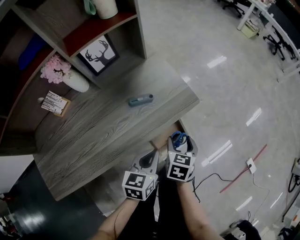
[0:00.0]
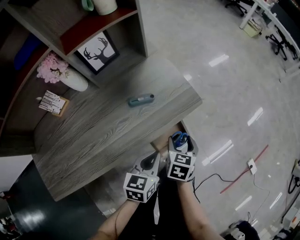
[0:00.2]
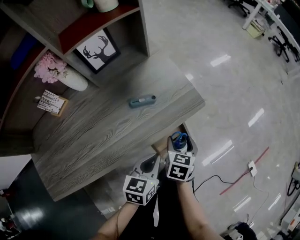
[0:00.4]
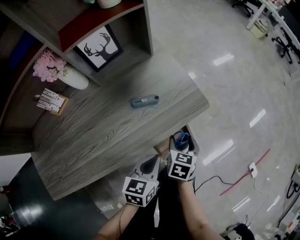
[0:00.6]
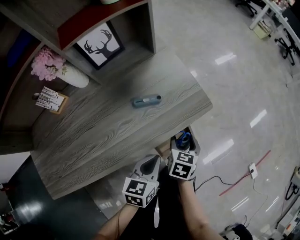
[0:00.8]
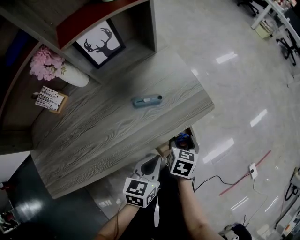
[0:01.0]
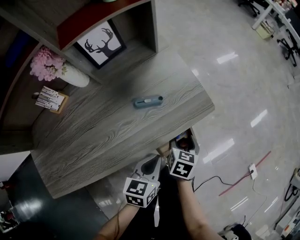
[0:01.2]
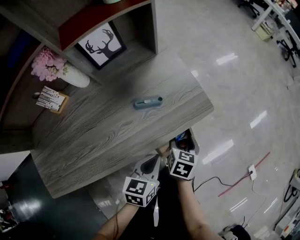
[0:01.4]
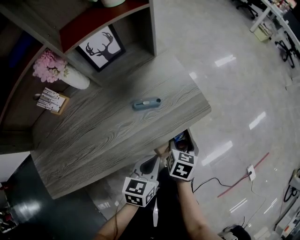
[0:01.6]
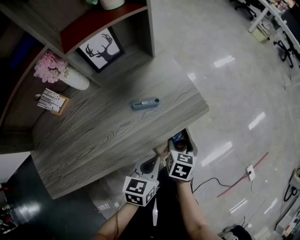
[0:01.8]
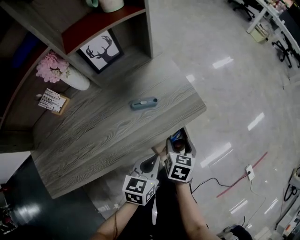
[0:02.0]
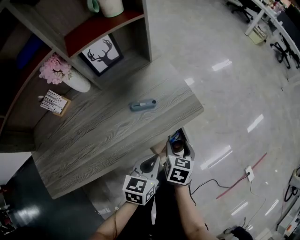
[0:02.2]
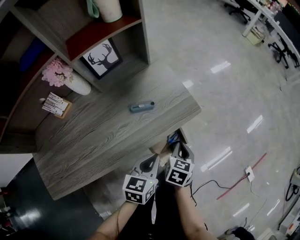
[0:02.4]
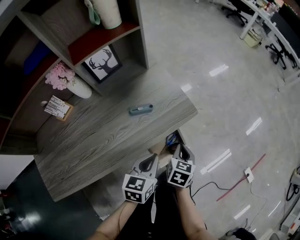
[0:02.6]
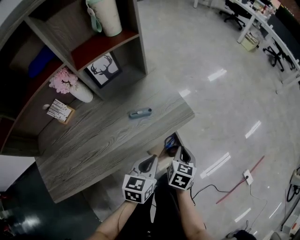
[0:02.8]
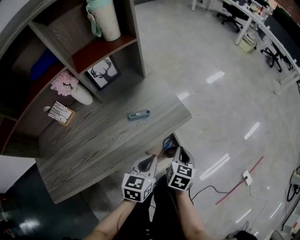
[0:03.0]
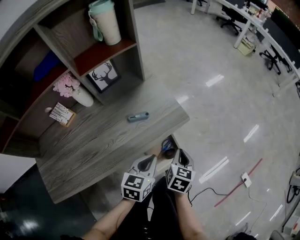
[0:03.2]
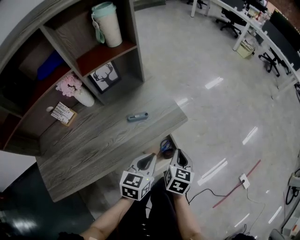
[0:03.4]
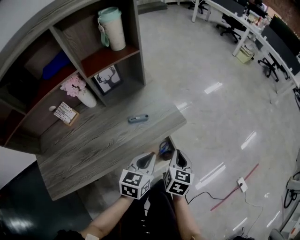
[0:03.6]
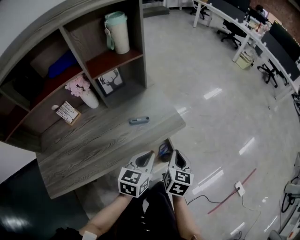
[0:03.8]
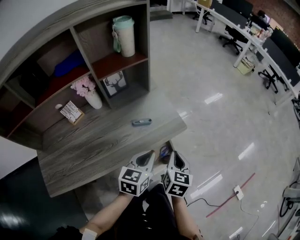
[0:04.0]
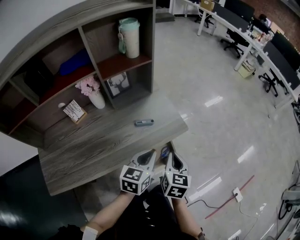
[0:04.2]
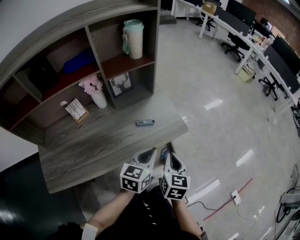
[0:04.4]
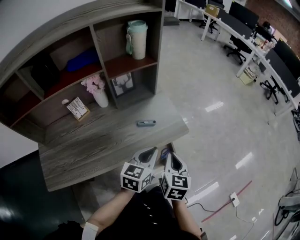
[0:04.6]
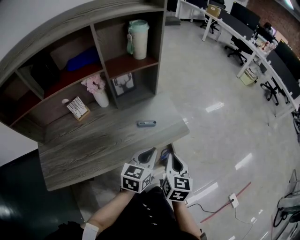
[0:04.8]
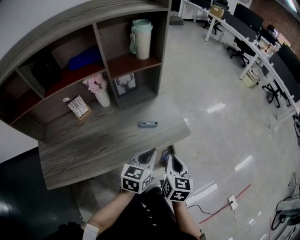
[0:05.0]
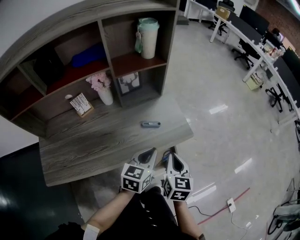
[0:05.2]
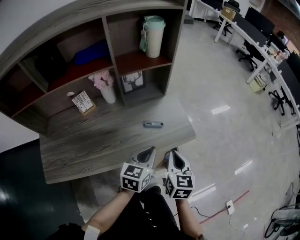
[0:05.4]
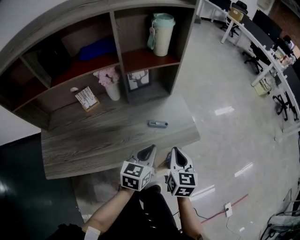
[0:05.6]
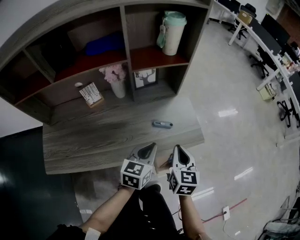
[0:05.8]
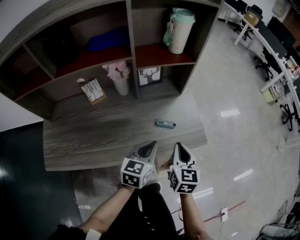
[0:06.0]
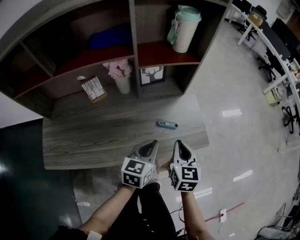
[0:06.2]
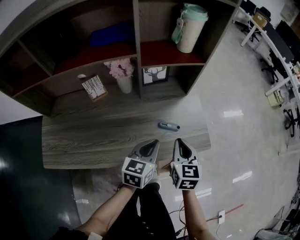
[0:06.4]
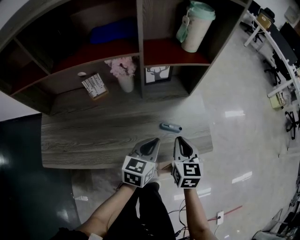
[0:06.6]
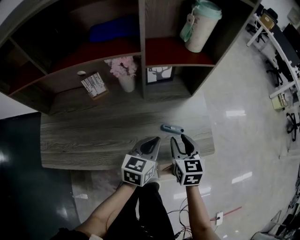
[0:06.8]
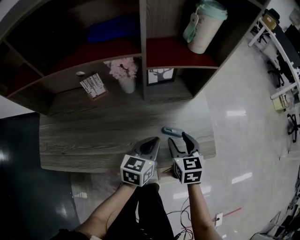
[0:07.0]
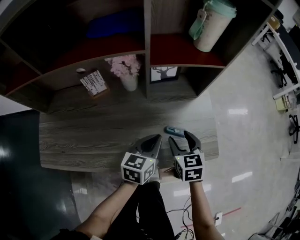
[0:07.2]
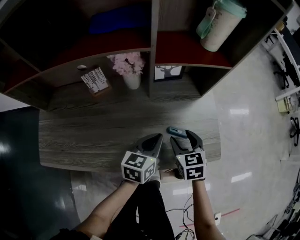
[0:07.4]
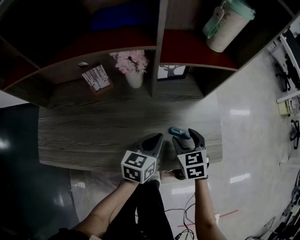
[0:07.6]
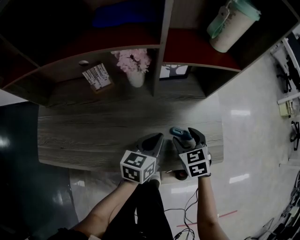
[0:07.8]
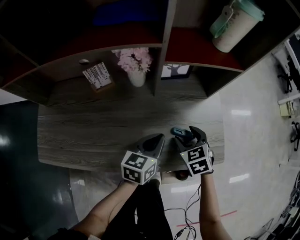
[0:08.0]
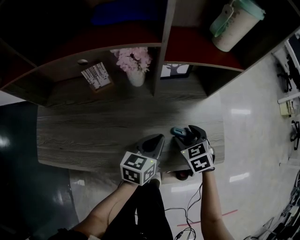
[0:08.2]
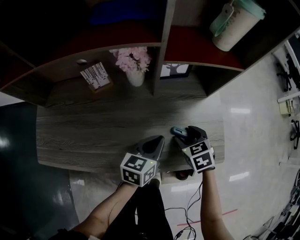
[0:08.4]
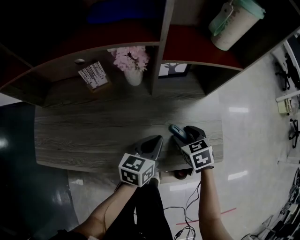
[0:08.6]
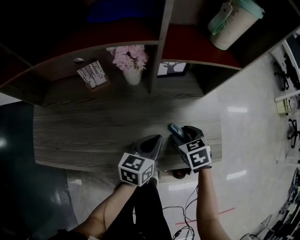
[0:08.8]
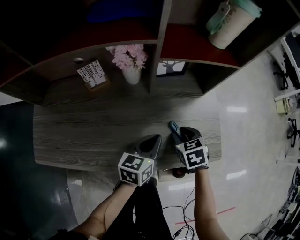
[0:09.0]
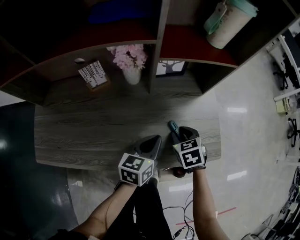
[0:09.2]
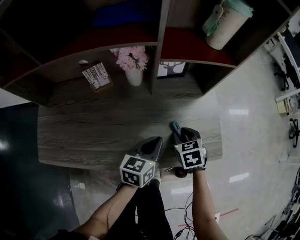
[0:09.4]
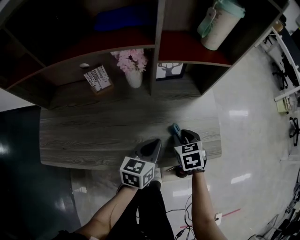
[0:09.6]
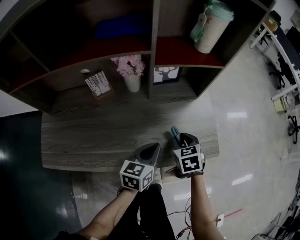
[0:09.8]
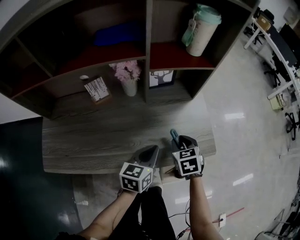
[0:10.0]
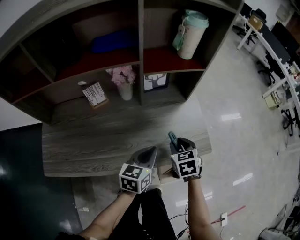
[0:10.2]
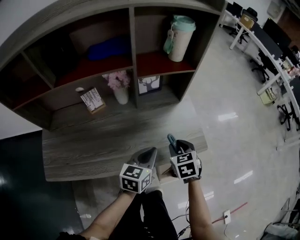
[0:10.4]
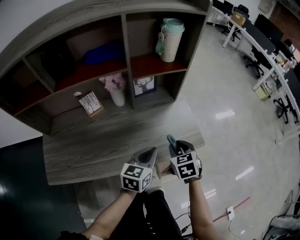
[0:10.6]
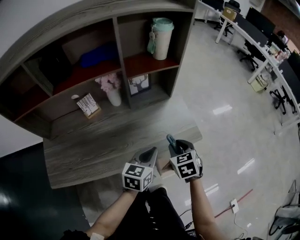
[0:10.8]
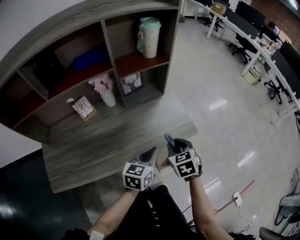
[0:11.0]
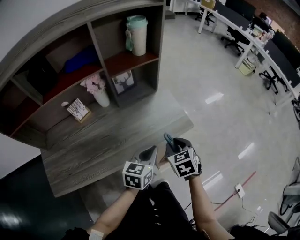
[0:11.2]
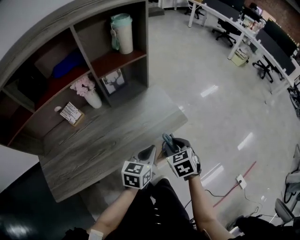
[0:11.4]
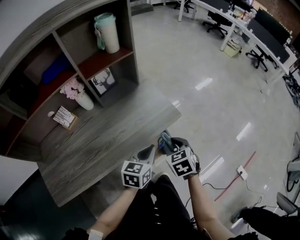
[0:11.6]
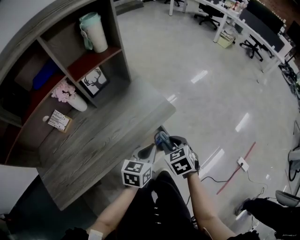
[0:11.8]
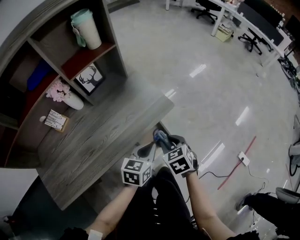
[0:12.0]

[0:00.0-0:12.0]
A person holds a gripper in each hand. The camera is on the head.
0.0 to 1.6 s: The right gripper heads downward, covering some 5 cm.
1.6 to 3.0 s: The right gripper moves upward and to the right, about 10 cm, and closes its fingers; the left gripper goes about 5 cm upward.
3.0 to 4.4 s: Both grippers move upward, about 10 cm.
4.4 to 6.0 s: The right gripper travels forward and to the left by approximately 10 cm, while the left gripper shifts some 10 cm to the left.
6.0 to 7.6 s: The left gripper moves forward and downward, roughly 10 cm; the right gripper travels downward, forward and to the left by some 15 cm, swivels about 30 degrees, and opens its fingers.
7.6 to 9.0 s: The right gripper closes.
9.0 to 10.4 s: The two grippers go roughly 10 cm upward and backward.
10.4 to 12.0 s: The right gripper moves backward and to the right, some 15 cm. Meanwhile the left gripper goes some 15 cm to the right and backward, and swivels roughly 30 degrees.

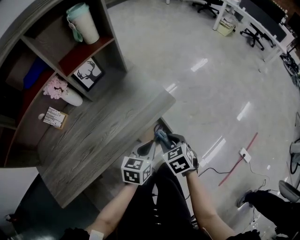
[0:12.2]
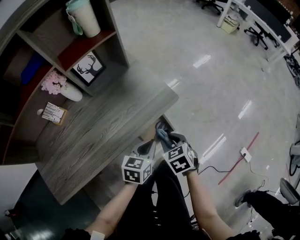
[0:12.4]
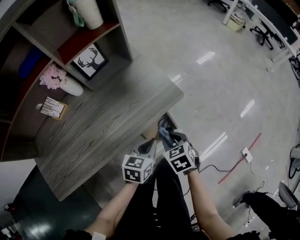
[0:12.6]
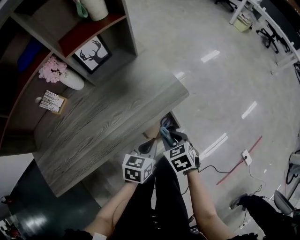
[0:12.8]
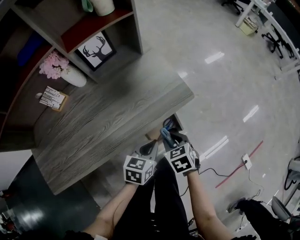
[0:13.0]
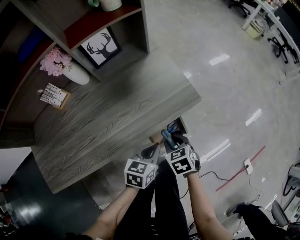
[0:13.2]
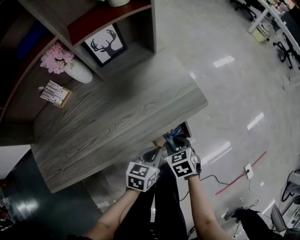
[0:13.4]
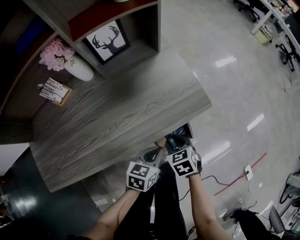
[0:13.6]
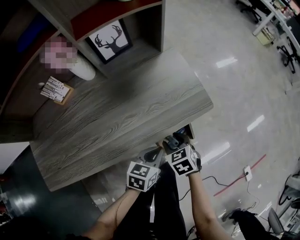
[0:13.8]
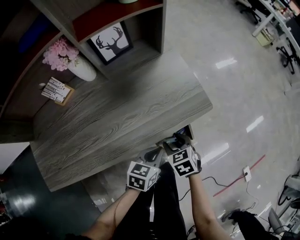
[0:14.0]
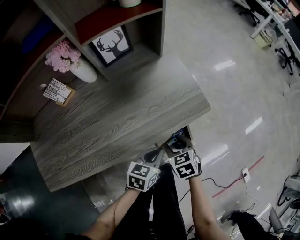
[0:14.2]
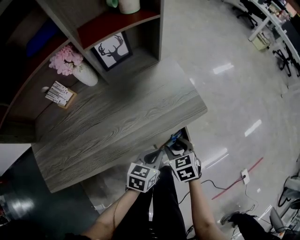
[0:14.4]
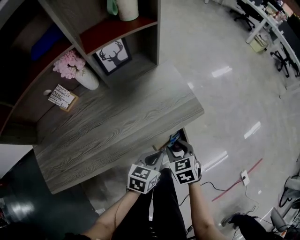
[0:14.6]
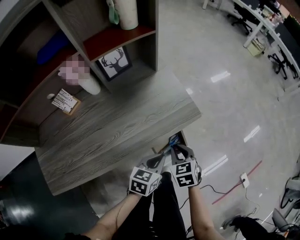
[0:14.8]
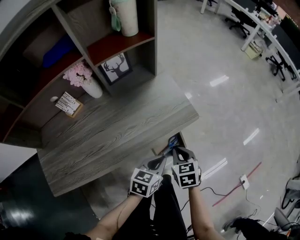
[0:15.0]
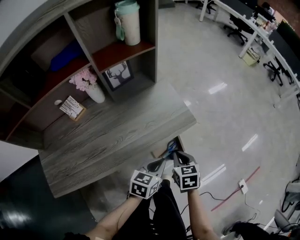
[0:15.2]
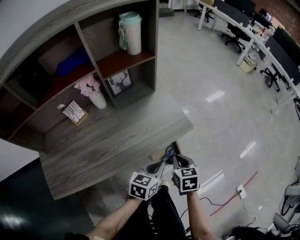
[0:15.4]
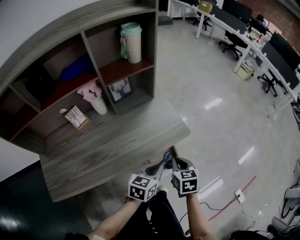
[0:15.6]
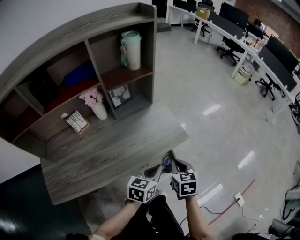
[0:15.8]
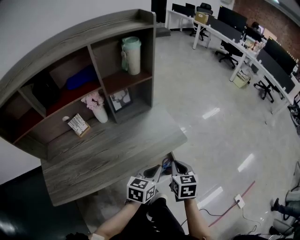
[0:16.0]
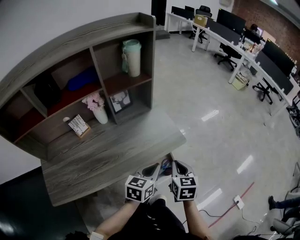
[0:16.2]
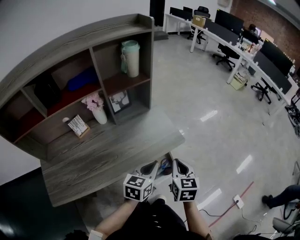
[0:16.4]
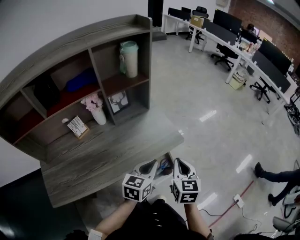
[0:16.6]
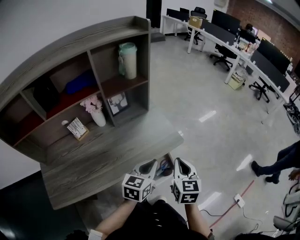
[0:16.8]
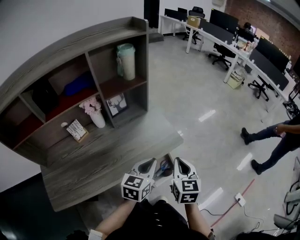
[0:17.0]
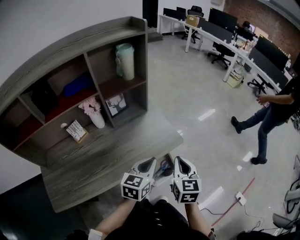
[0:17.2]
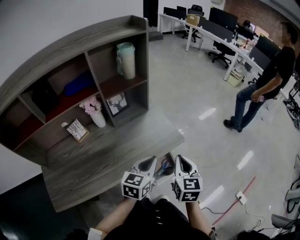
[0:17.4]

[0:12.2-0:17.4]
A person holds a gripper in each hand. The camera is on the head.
12.2 to 14.0 s: The two grippers go roughly 15 cm downward and to the left.
14.0 to 15.6 s: Both grippers move upward, about 15 cm. The right gripper swivels some 30 degrees, and closes its fingers.
15.6 to 17.4 s: Both grippers move upward, approximately 10 cm. The right gripper turns by some 20 degrees.

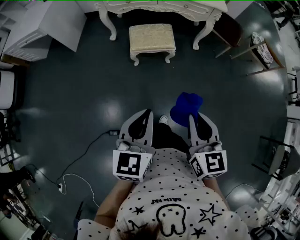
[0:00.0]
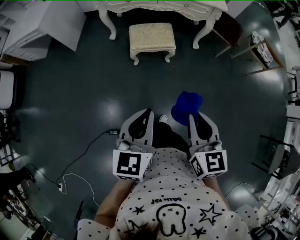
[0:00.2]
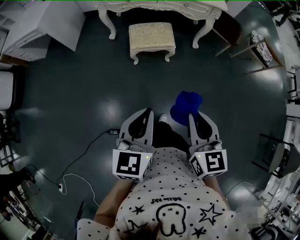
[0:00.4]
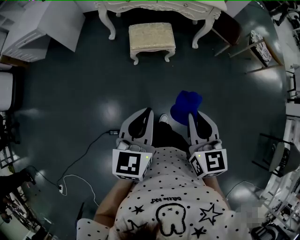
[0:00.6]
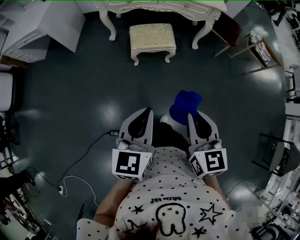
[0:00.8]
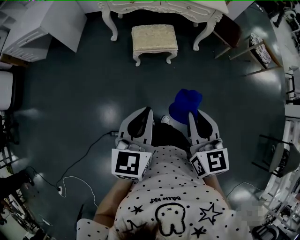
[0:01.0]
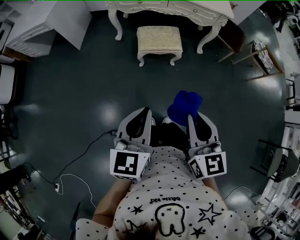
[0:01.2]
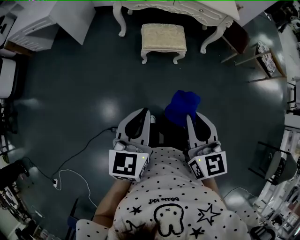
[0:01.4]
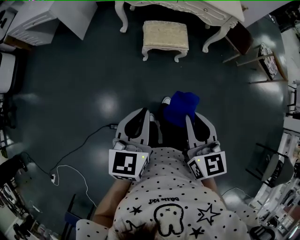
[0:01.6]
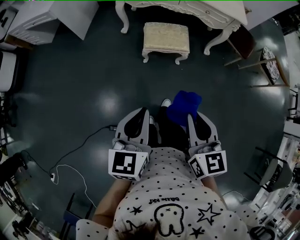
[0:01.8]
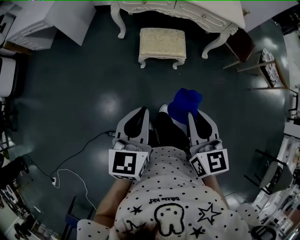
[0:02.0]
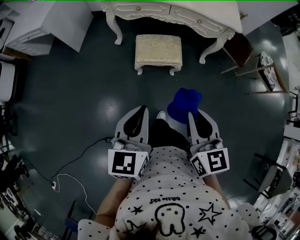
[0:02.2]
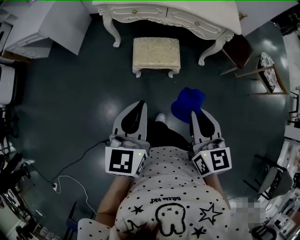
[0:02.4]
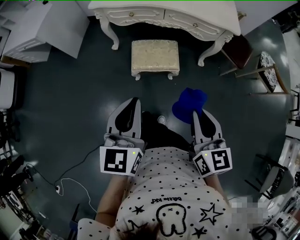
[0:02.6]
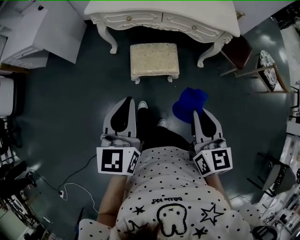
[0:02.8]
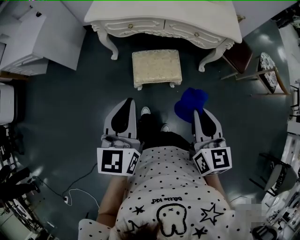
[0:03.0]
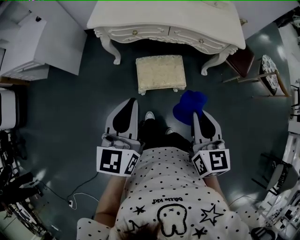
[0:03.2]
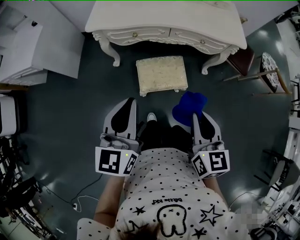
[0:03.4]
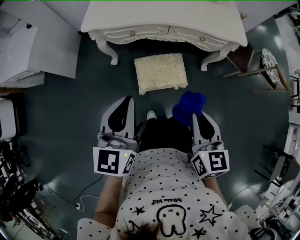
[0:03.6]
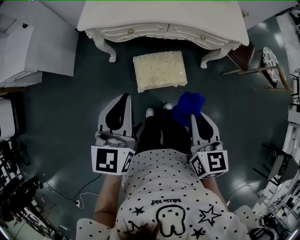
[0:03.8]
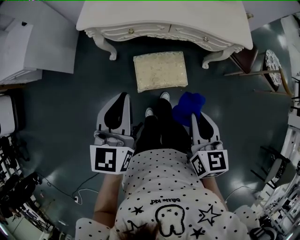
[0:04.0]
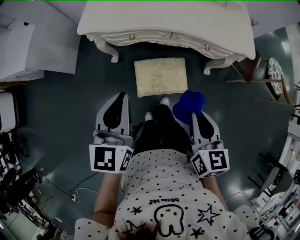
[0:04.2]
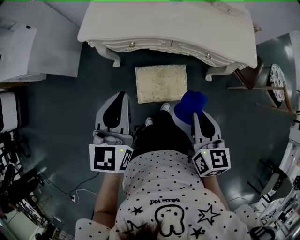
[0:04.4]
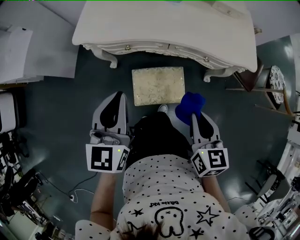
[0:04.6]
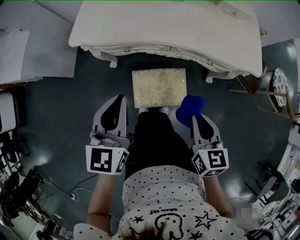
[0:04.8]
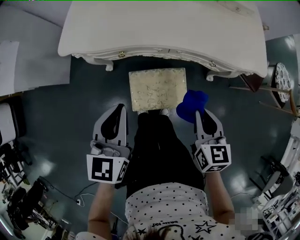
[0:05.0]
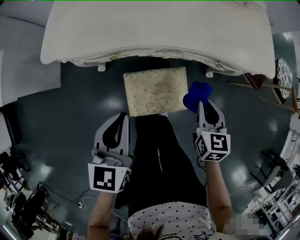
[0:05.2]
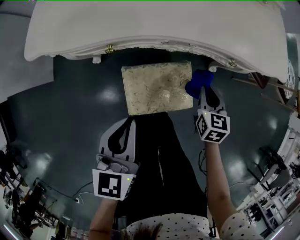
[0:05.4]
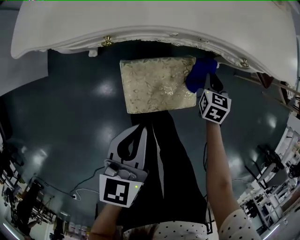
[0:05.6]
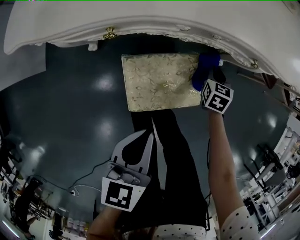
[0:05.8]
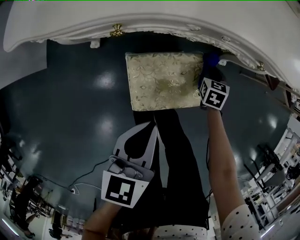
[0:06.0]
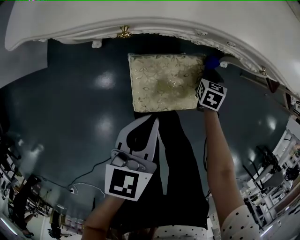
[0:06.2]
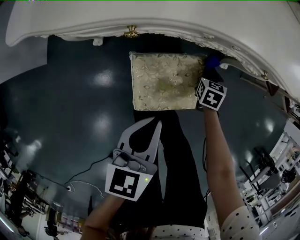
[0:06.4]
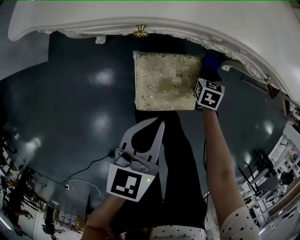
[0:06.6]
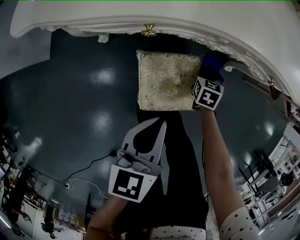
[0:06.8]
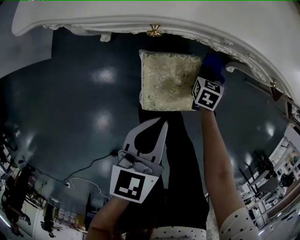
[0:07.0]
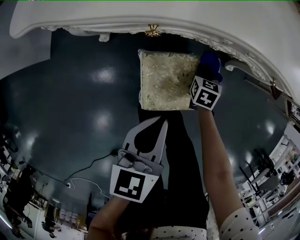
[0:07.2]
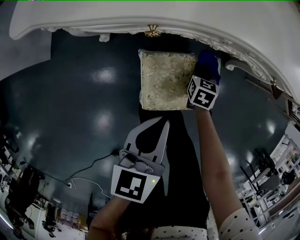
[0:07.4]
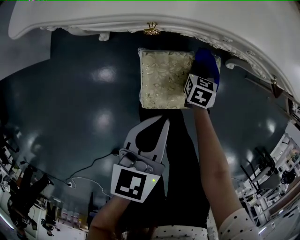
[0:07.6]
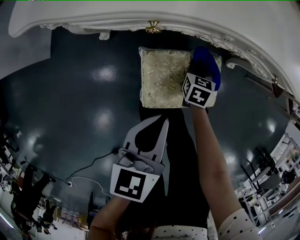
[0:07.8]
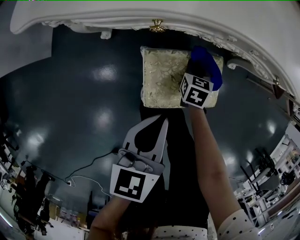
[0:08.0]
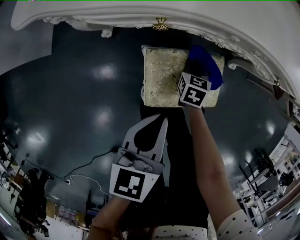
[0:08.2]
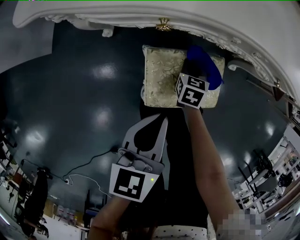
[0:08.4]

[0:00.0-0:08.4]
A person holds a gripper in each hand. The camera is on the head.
0.0 to 1.4 s: Both grippers move to the left, roughly 10 cm.
1.4 to 2.8 s: The right gripper is displaced forward and to the right by approximately 25 cm. Meanwhile the left gripper goes roughly 25 cm forward.
2.8 to 4.2 s: The two grippers go about 20 cm forward.
4.2 to 5.6 s: The right gripper goes roughly 50 cm downward and forward, and changes its angle by some 30 degrees, while the left gripper heads downward, covering some 25 cm, and changes its angle by some 30 degrees.
5.6 to 7.0 s: The right gripper travels to the left and downward by about 15 cm. Meanwhile the left gripper changes place by some 5 cm.
7.0 to 8.4 s: The right gripper moves to the left, roughly 10 cm.
